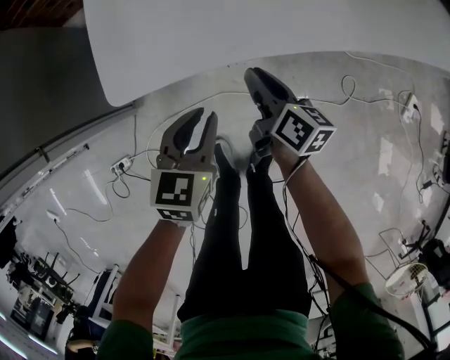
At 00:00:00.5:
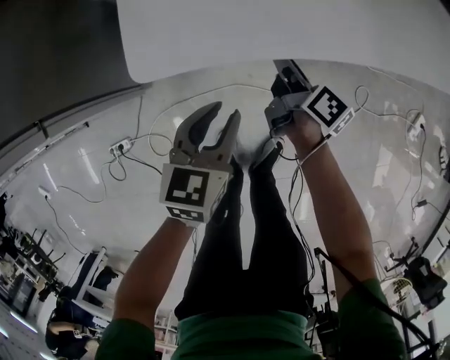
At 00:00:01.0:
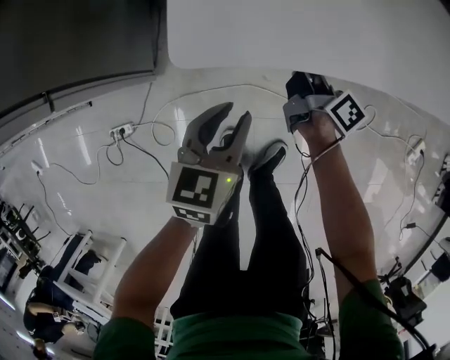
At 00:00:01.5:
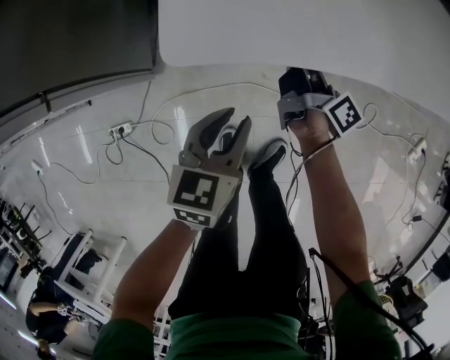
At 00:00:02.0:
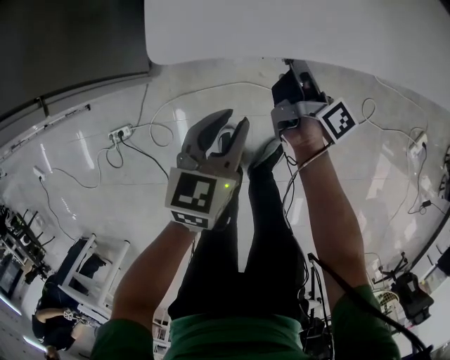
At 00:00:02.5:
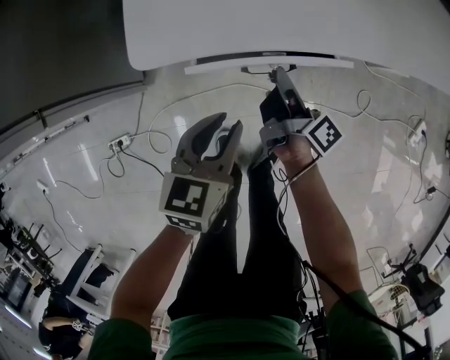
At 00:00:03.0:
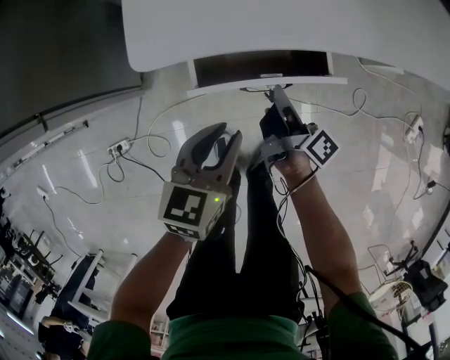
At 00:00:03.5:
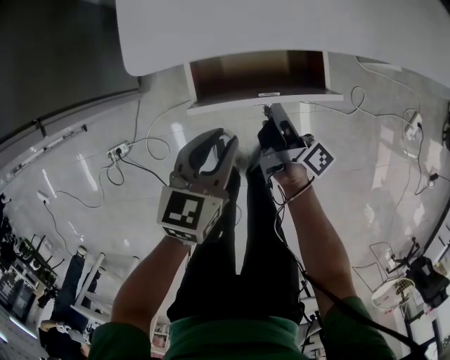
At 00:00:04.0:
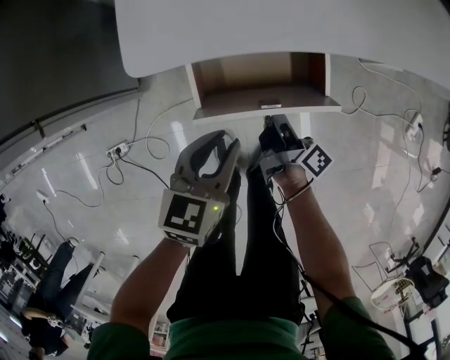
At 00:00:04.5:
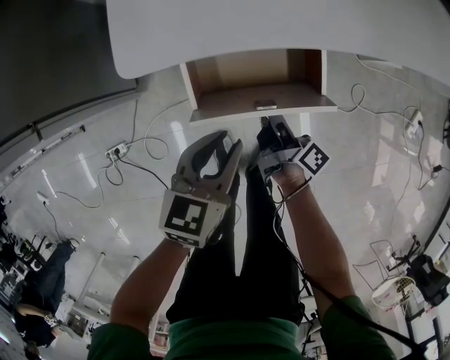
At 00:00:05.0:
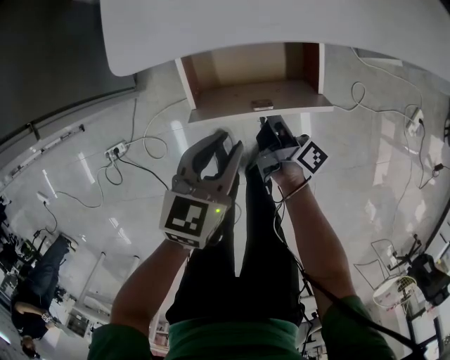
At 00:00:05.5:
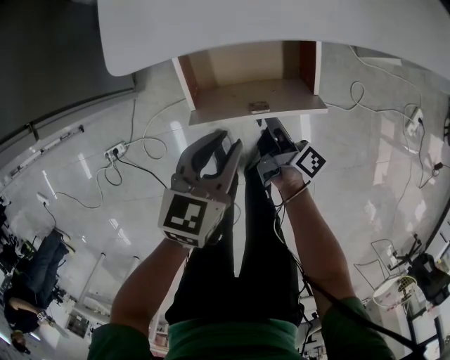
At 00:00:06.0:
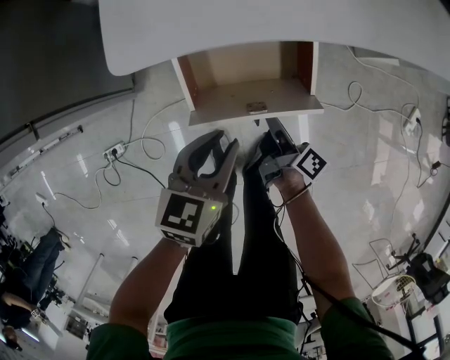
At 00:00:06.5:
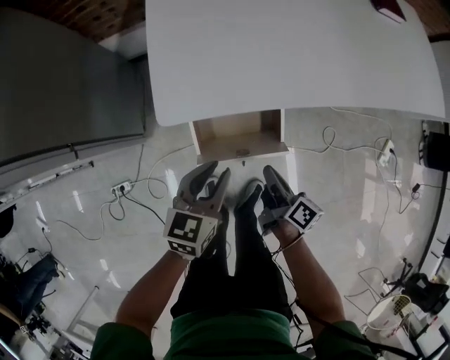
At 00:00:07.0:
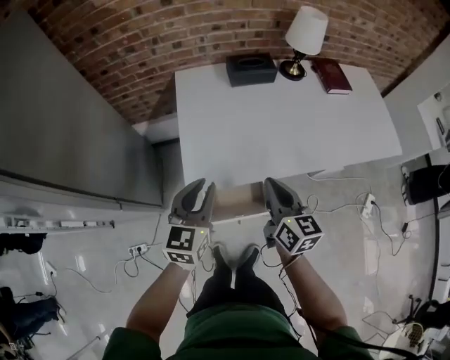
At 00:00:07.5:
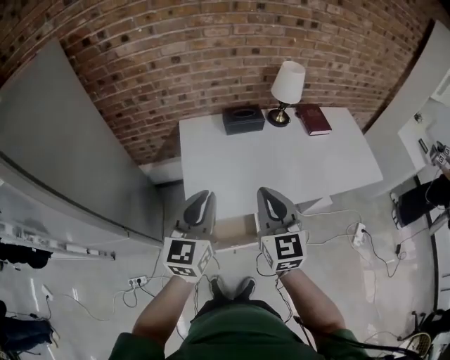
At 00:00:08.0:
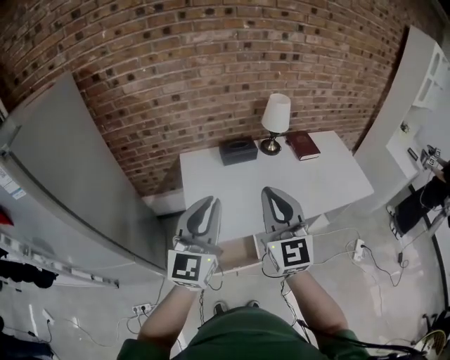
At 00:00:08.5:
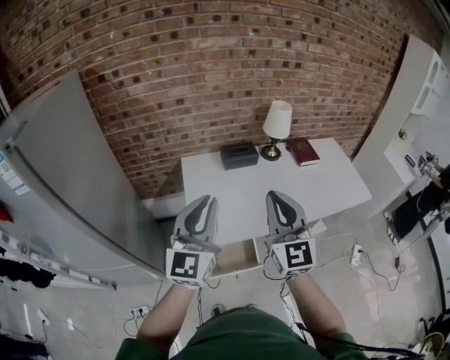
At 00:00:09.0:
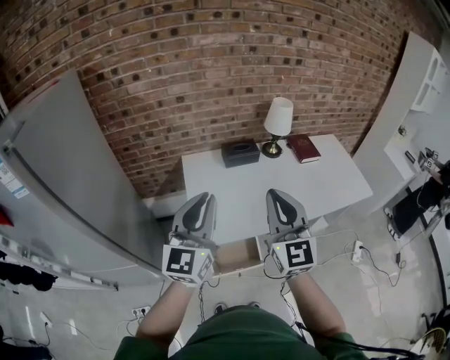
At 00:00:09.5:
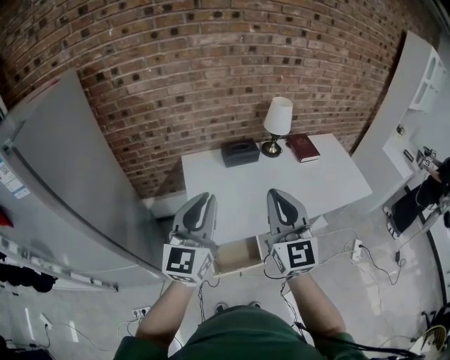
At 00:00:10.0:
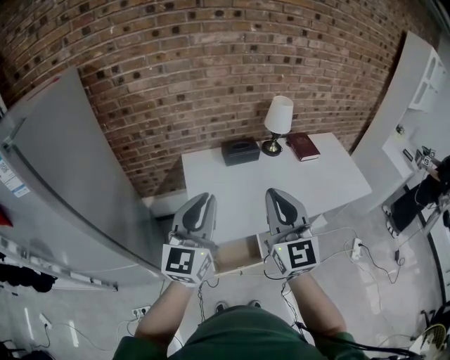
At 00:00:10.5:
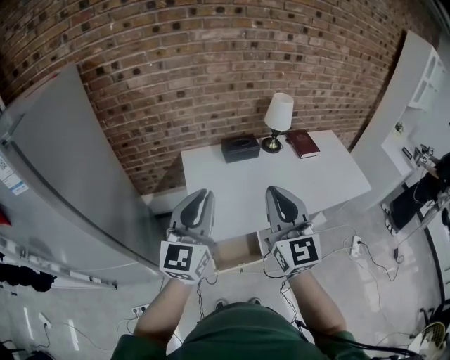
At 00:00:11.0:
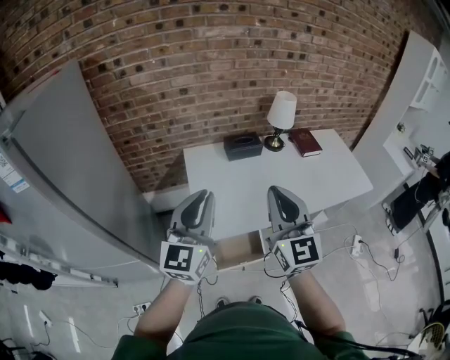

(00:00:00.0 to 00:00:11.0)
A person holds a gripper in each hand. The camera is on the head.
00:00:00.0 - 00:00:02.0: The right gripper changes its angle by some 30 degrees.
00:00:02.0 - 00:00:03.5: The right gripper heads backward, covering some 10 cm.
00:00:03.5 - 00:00:05.5: The right gripper heads downward, covering some 5 cm.
00:00:05.5 - 00:00:07.5: The grippers both shift upward by about 60 cm. The right gripper rotates around the line of its fingers by roughly 90 degrees, counterclockwise from behind. The left gripper points its fingers about 30 degrees further upward.
00:00:07.5 - 00:00:09.0: Both grippers move upward, about 10 cm.
00:00:09.0 - 00:00:11.0: The grippers stay close to where they were, moving slightly.

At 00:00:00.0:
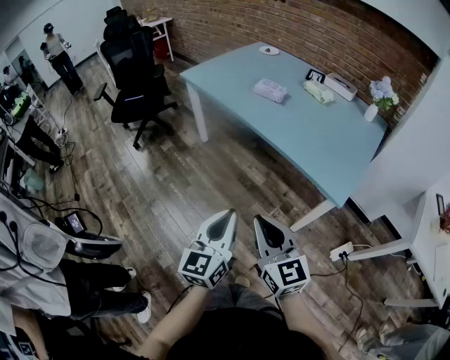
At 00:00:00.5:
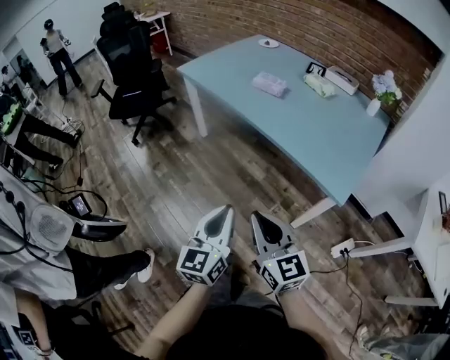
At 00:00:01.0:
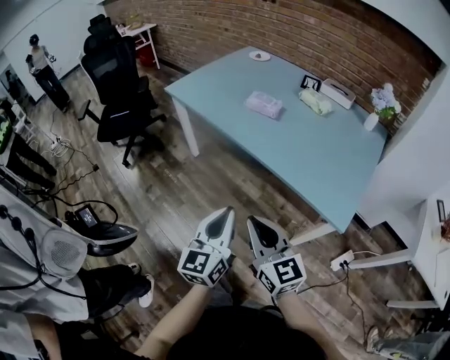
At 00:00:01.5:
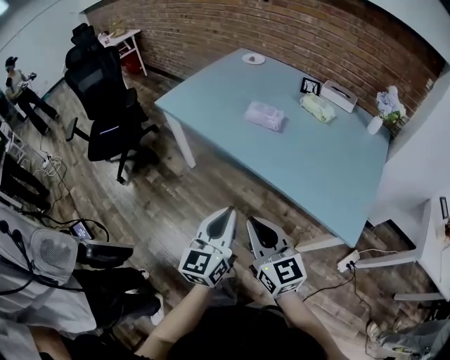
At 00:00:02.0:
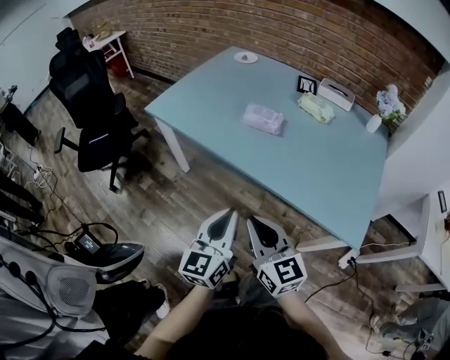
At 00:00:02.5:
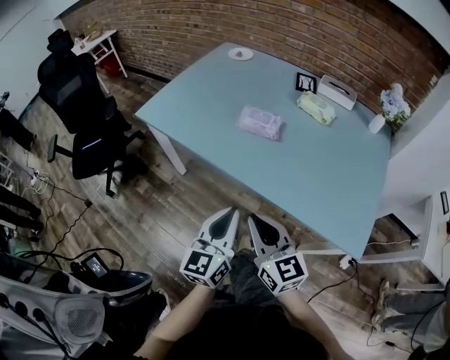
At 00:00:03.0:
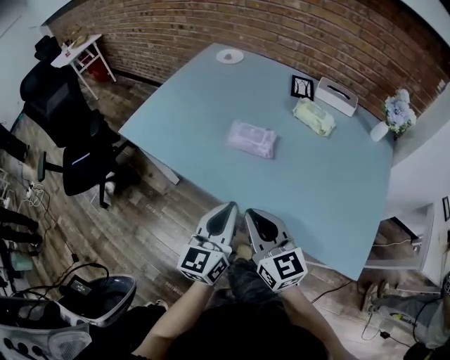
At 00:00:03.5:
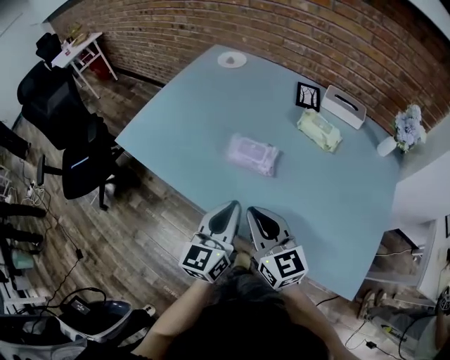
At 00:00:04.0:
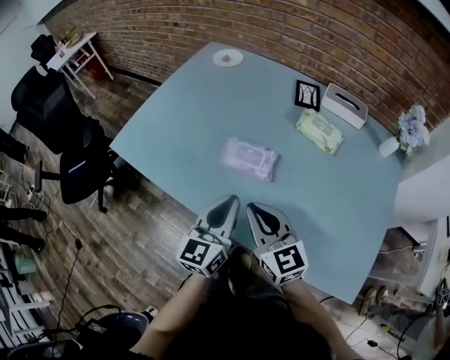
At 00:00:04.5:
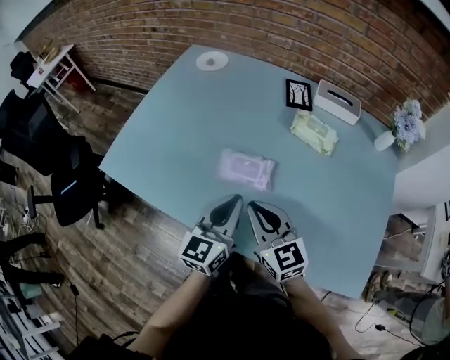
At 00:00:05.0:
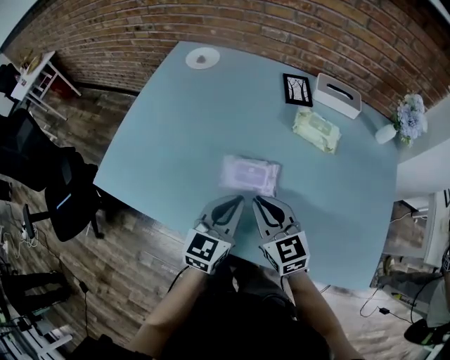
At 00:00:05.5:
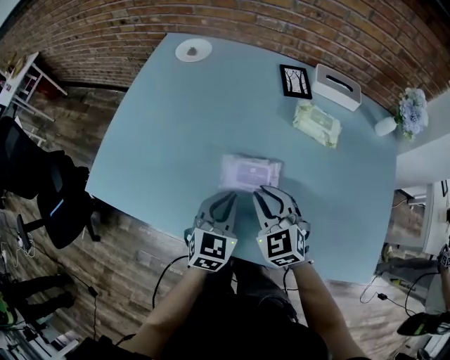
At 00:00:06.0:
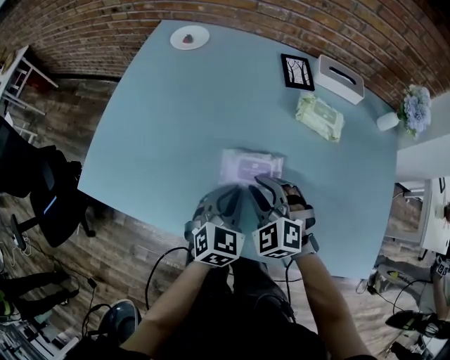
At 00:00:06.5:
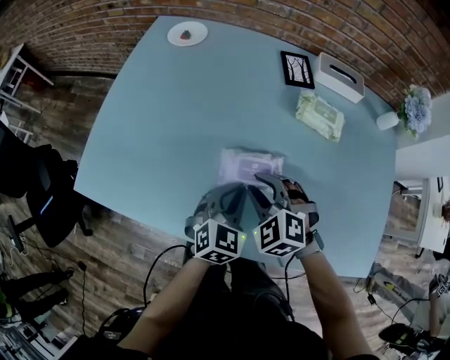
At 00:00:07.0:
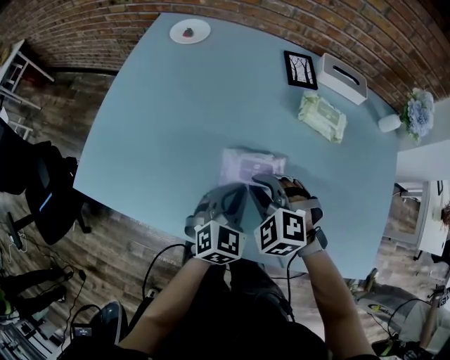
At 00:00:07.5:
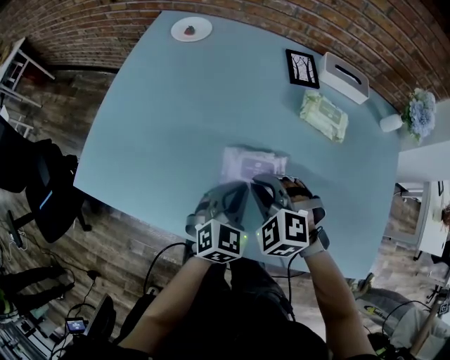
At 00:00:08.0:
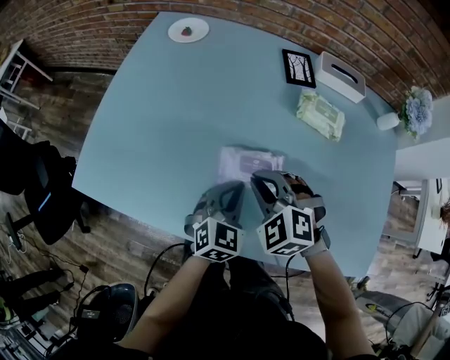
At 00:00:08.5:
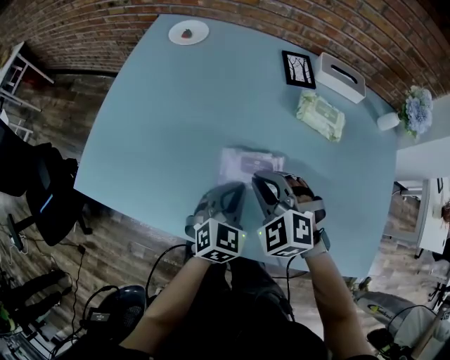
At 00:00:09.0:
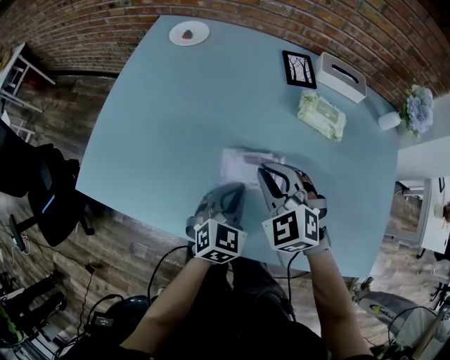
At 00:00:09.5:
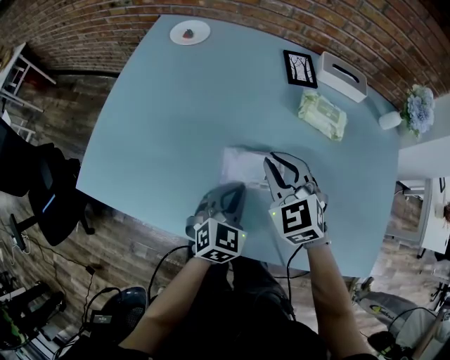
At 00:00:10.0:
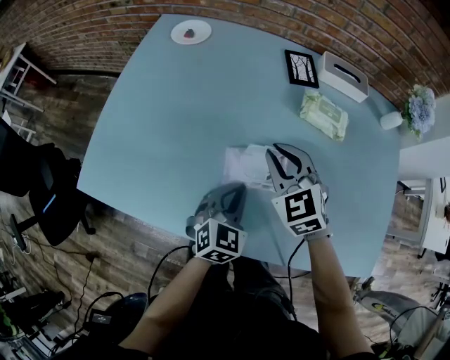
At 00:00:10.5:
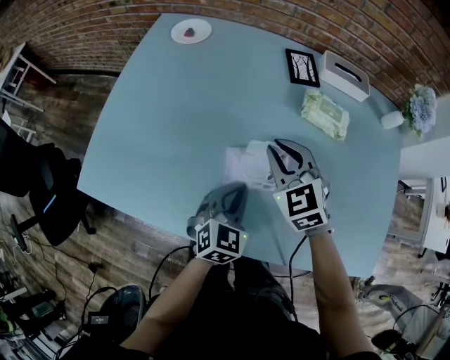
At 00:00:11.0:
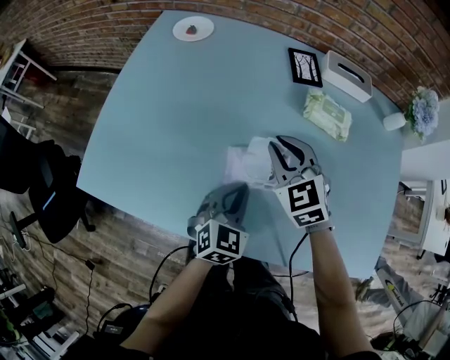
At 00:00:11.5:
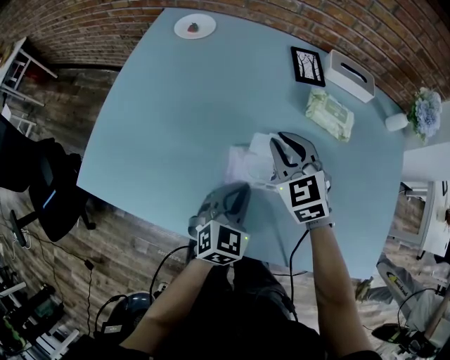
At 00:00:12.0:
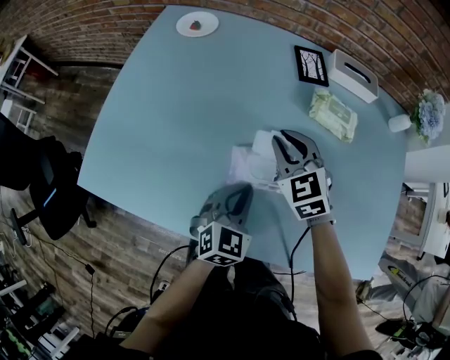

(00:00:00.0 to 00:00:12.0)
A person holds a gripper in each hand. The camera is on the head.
00:00:00.0 - 00:00:02.0: The two grippers go some 30 cm forward.
00:00:02.0 - 00:00:04.0: Both grippers move forward, some 30 cm.
00:00:04.0 - 00:00:06.0: The grippers both shift forward and downward by some 15 cm. The left gripper swivels approximately 50 degrees. The right gripper points its fingers some 30 degrees further downward, and opens up.
00:00:06.0 - 00:00:08.0: The grippers make only small movements.
00:00:08.0 - 00:00:10.0: The right gripper goes approximately 5 cm forward, and turns by some 30 degrees.
00:00:10.0 - 00:00:12.0: The grippers make only small movements.

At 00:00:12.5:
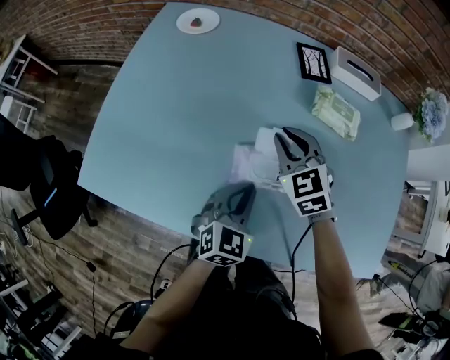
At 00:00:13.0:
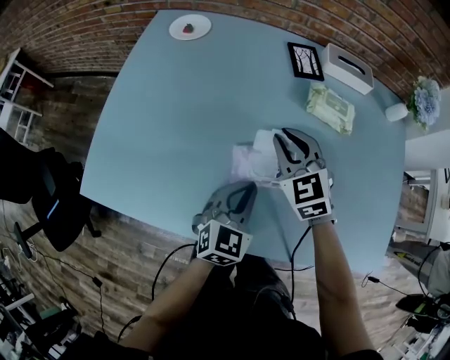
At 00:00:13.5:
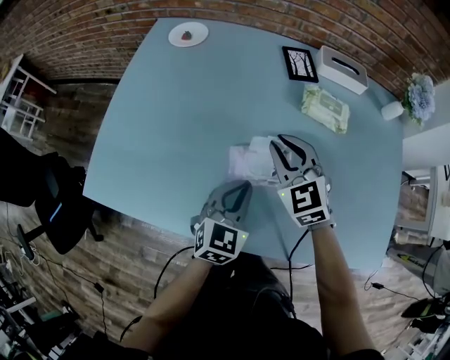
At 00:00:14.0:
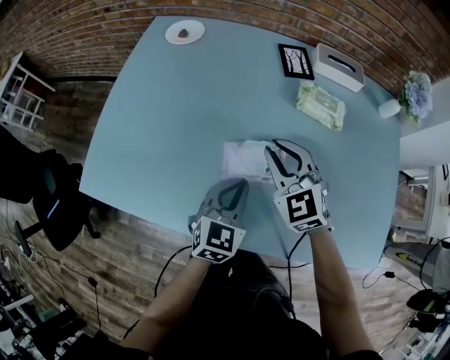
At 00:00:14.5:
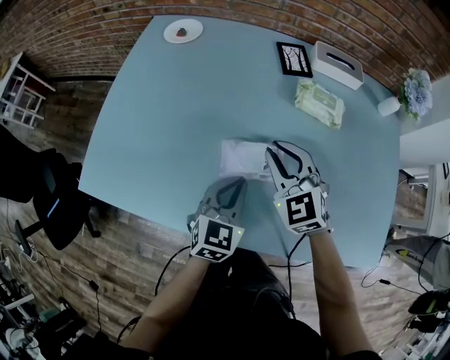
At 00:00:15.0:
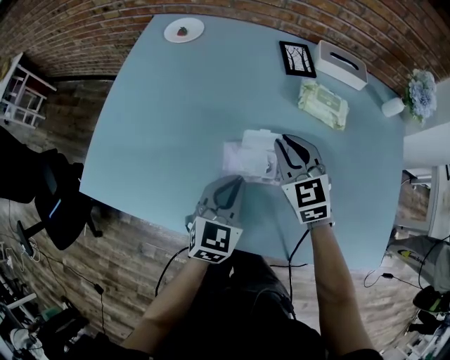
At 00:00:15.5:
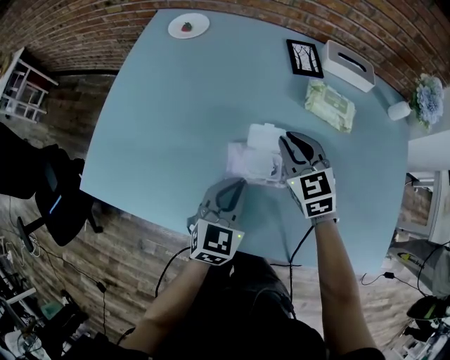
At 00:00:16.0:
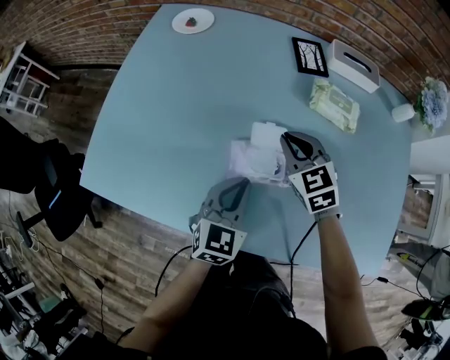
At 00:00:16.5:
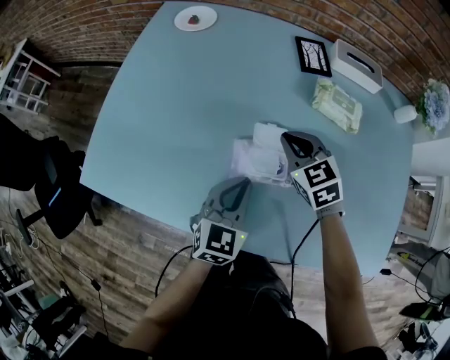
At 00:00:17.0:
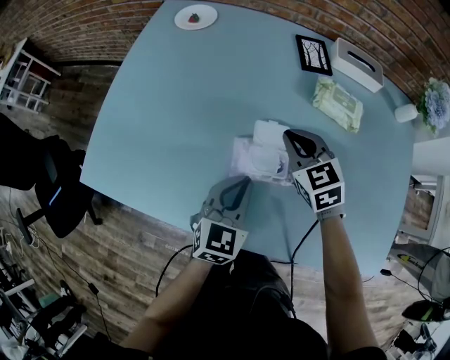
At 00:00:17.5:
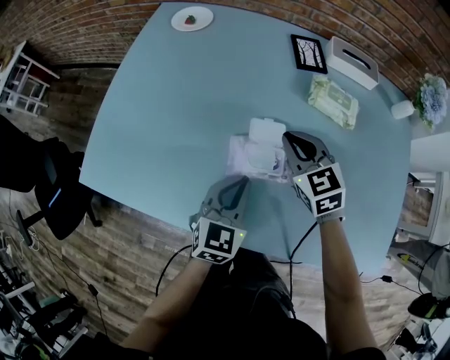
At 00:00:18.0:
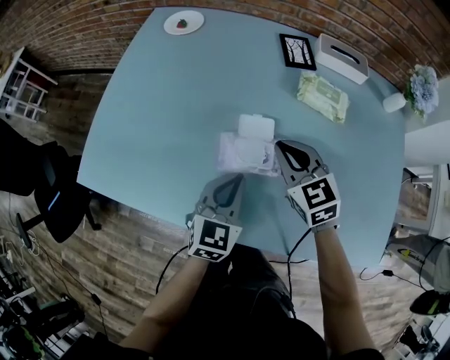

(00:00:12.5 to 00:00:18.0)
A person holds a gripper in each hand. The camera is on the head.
00:00:12.5 - 00:00:14.5: The right gripper heads backward, covering about 5 cm.
00:00:14.5 - 00:00:16.0: The right gripper travels downward and forward by about 5 cm.
00:00:16.0 - 00:00:18.0: The right gripper goes some 5 cm backward.
